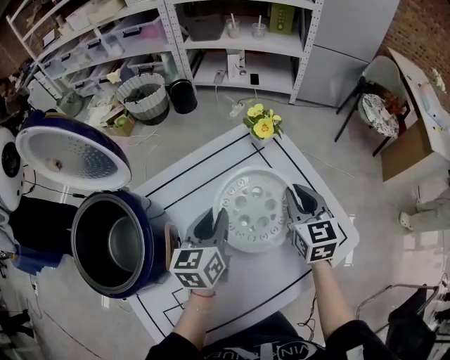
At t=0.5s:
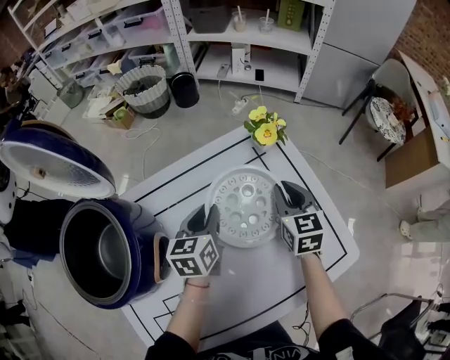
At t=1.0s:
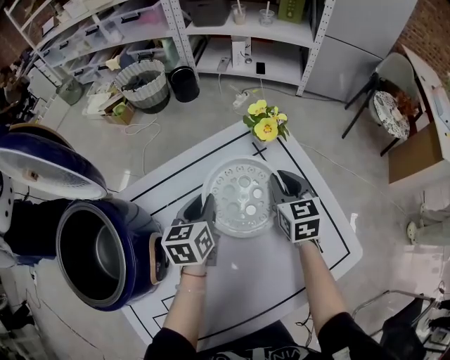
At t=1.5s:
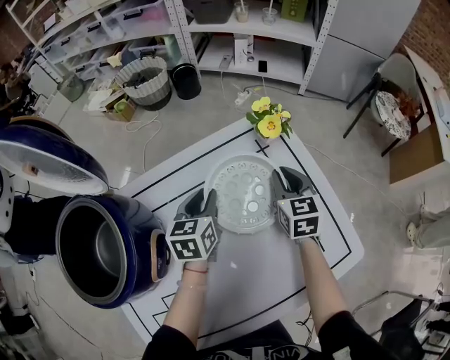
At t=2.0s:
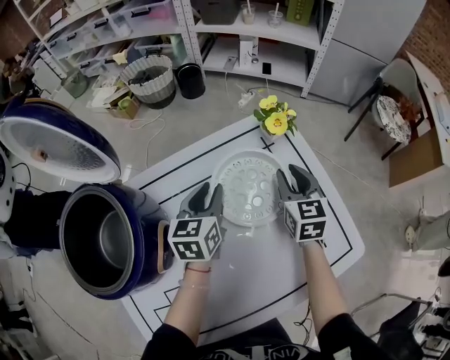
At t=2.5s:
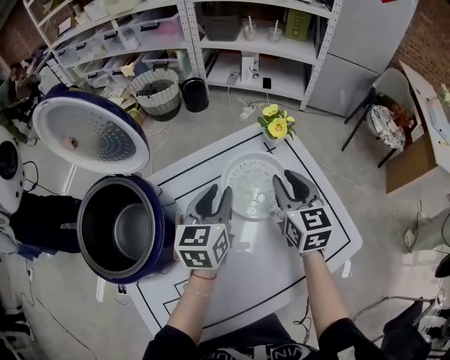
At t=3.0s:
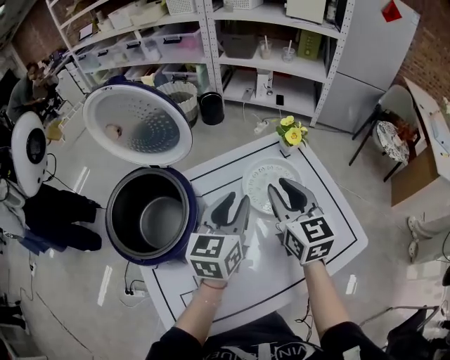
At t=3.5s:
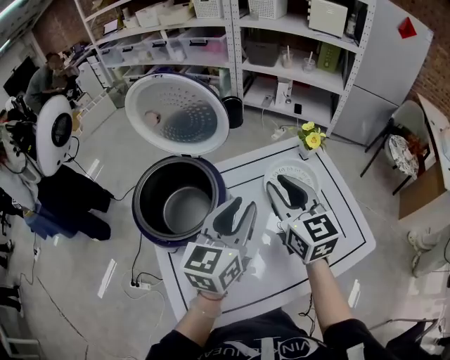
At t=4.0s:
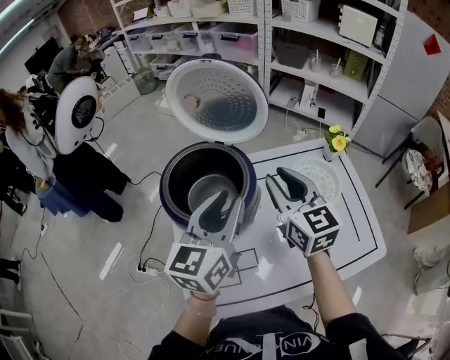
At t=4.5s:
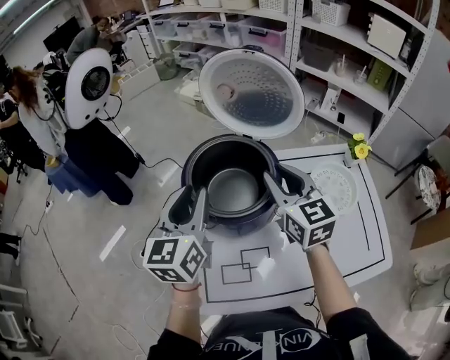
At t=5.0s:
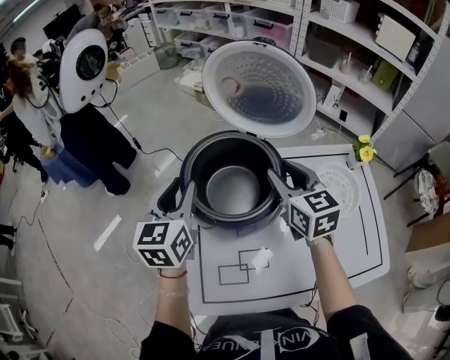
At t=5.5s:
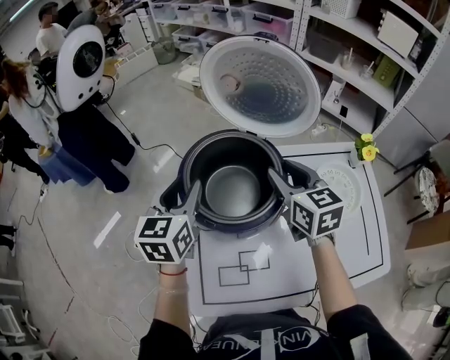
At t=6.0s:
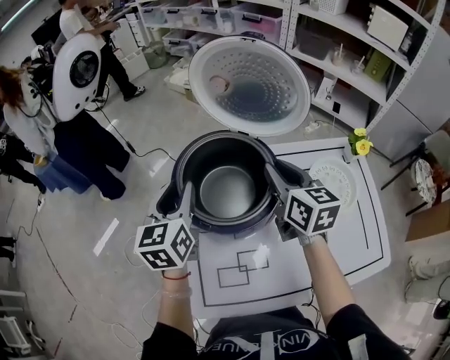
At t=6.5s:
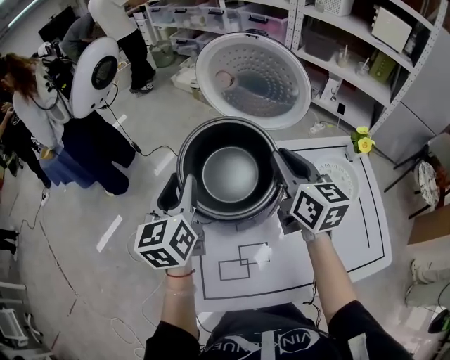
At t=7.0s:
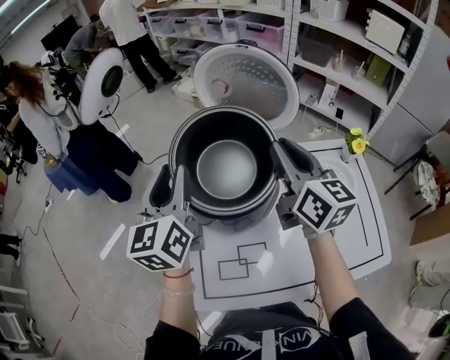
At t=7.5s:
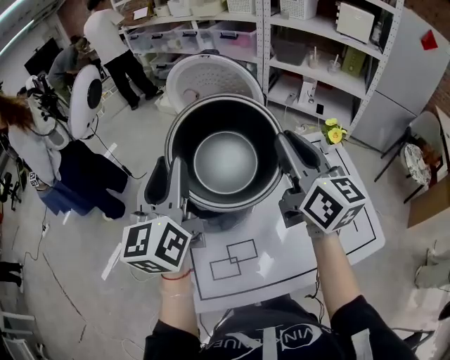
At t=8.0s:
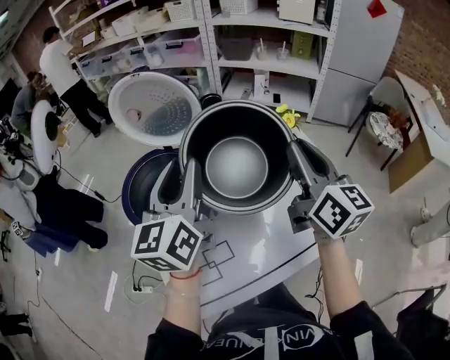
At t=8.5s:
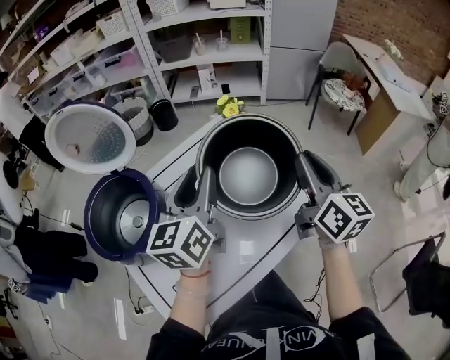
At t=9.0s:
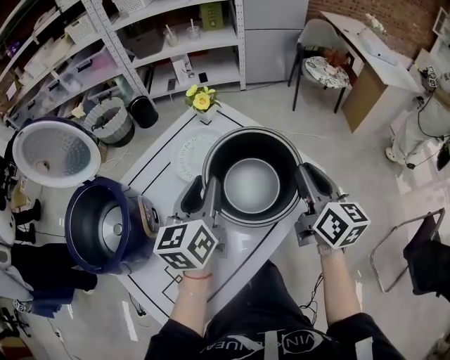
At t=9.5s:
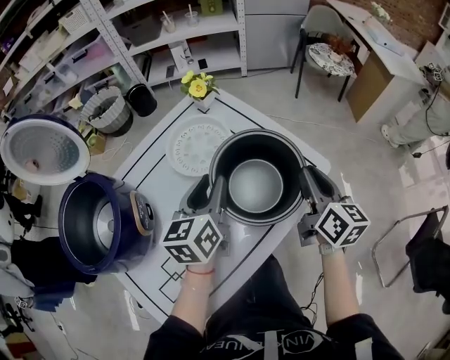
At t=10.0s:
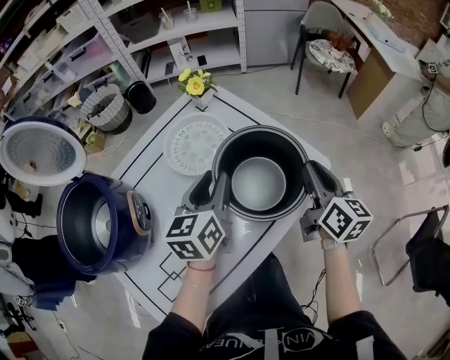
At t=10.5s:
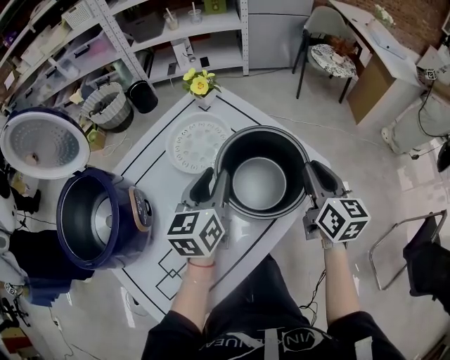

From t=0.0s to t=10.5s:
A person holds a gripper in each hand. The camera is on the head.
From t=0.0s to t=2.0s: The left gripper moves forward, roughly 5 cm, while the right gripper is displaced forward and downward by about 10 cm.
From t=2.0s to t=4.0s: The left gripper is displaced upward, backward and to the left by some 35 cm, and turns by roughly 20 degrees, while the right gripper travels to the left, upward and backward by approximately 40 cm, and changes its angle by about 30 degrees.
From t=4.0s to t=6.5s: The left gripper travels to the left and forward by approximately 20 cm, and turns by about 30 degrees. The right gripper goes approximately 10 cm forward and to the left.
From t=6.5s to t=8.5s: The right gripper reaches some 10 cm upward, then returns, and rotates some 40 degrees. Meanwhile the left gripper reaches roughly 15 cm upward, then returns, and changes its angle by roughly 40 degrees.
From t=8.5s to t=10.5s: The two grippers go roughly 15 cm downward and to the right.

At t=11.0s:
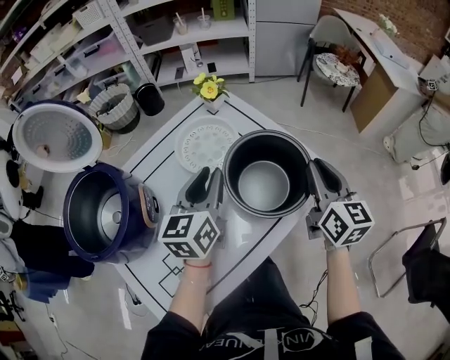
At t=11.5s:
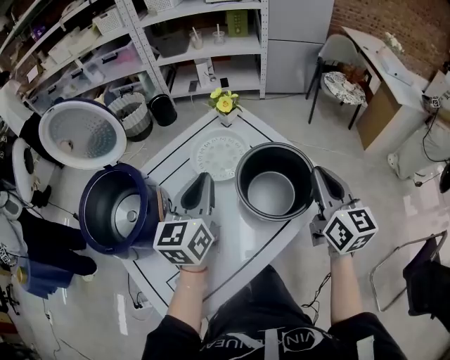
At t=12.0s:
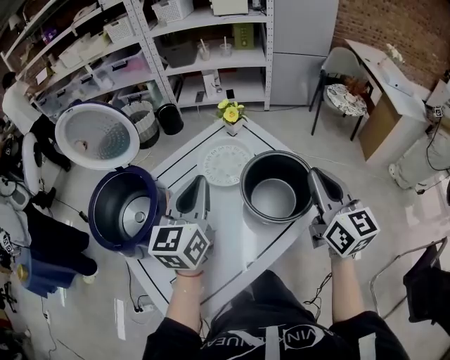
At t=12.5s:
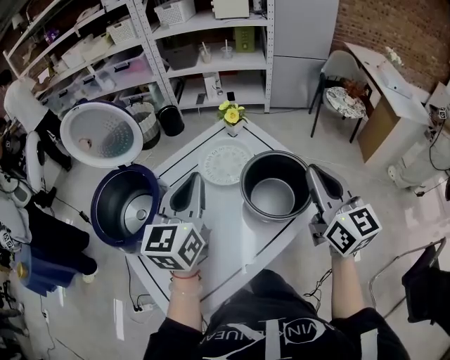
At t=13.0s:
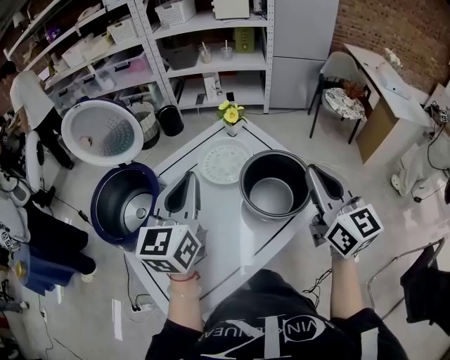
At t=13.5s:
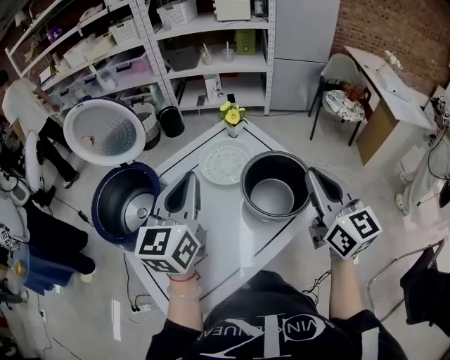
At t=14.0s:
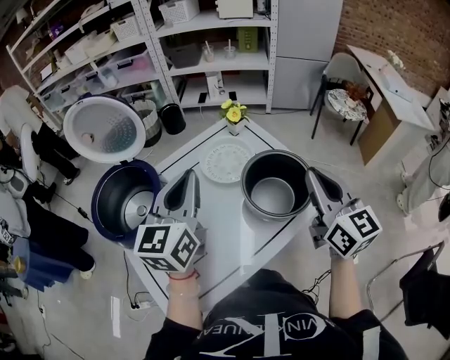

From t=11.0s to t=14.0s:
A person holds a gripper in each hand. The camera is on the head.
From t=11.0s to t=12.5s: The left gripper shifts some 15 cm upward, to the left and backward, and closes up; the right gripper heads upward and to the left, covering roughly 15 cm.
From t=12.5s to t=14.0s: There are only small adjustments of the grippers.

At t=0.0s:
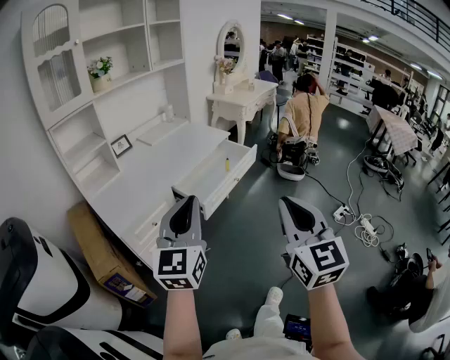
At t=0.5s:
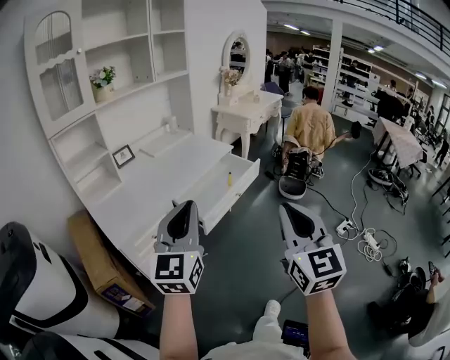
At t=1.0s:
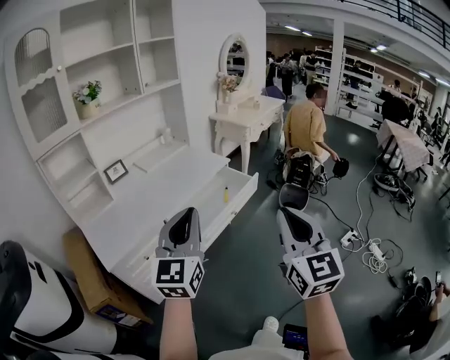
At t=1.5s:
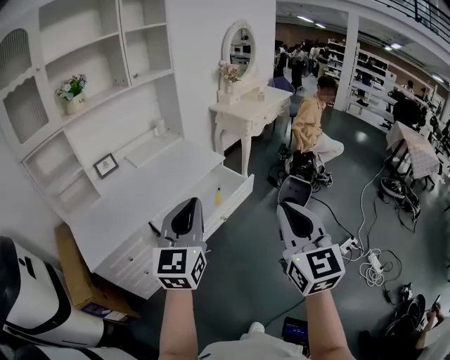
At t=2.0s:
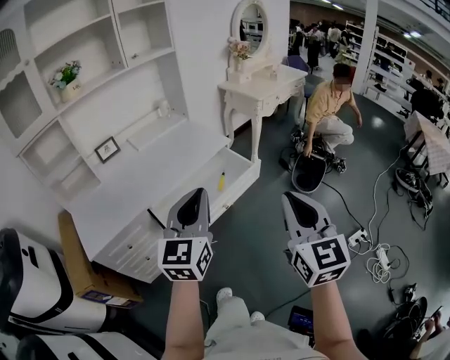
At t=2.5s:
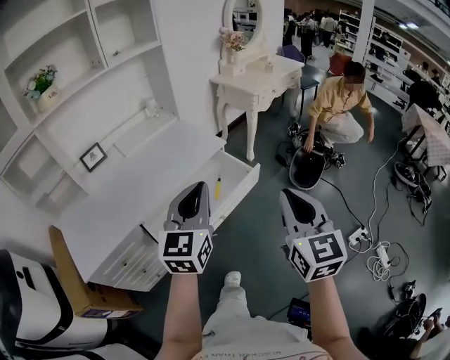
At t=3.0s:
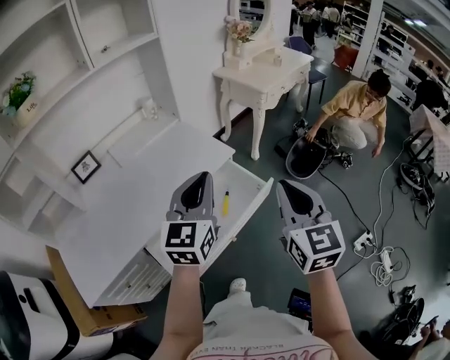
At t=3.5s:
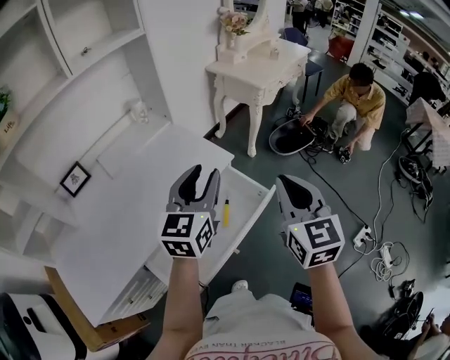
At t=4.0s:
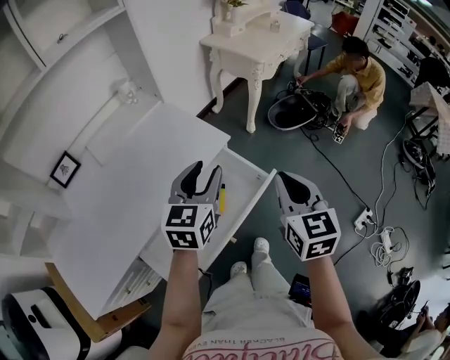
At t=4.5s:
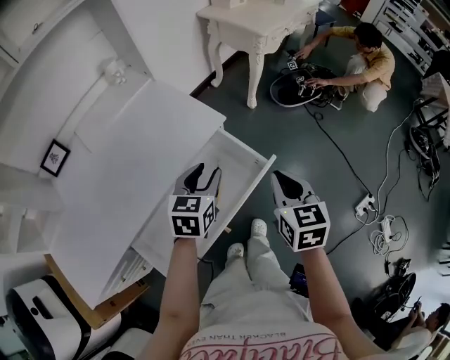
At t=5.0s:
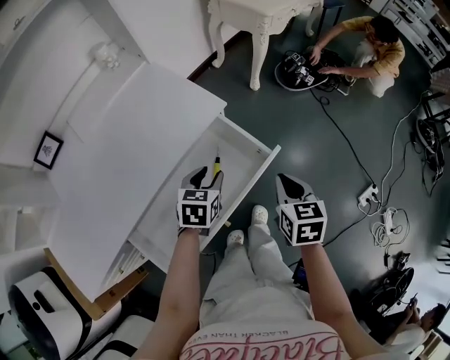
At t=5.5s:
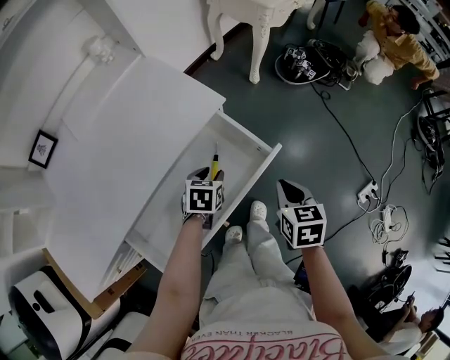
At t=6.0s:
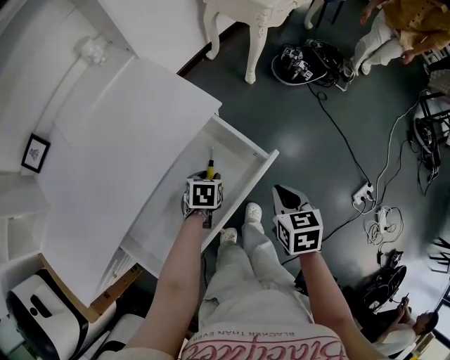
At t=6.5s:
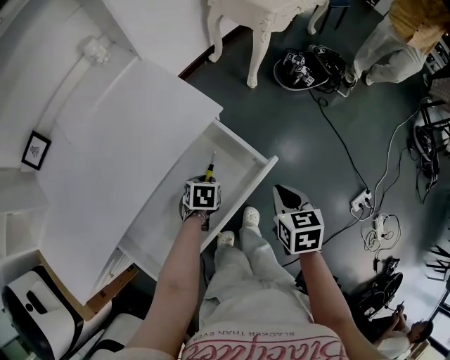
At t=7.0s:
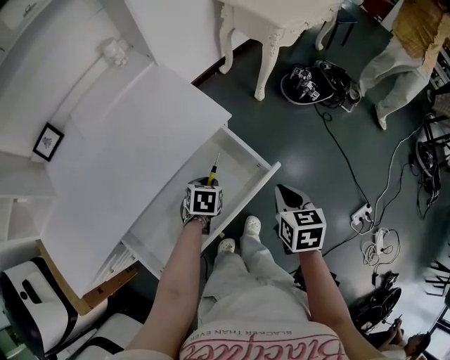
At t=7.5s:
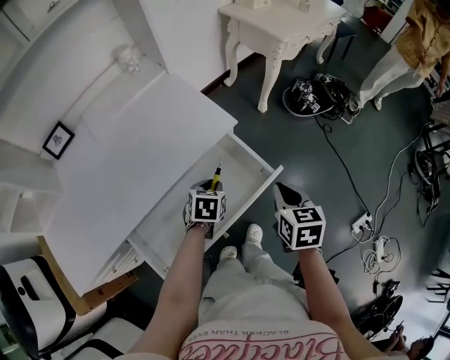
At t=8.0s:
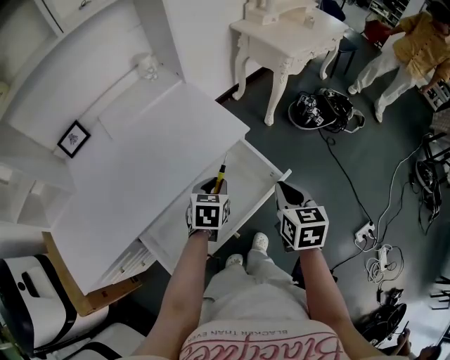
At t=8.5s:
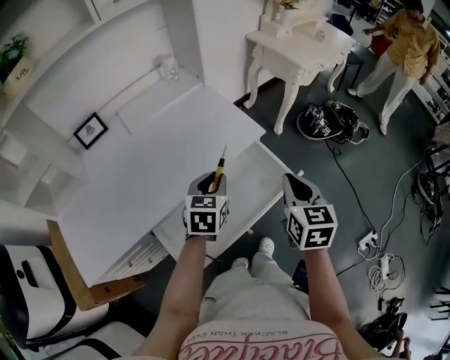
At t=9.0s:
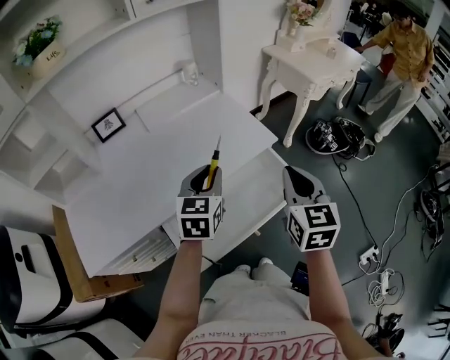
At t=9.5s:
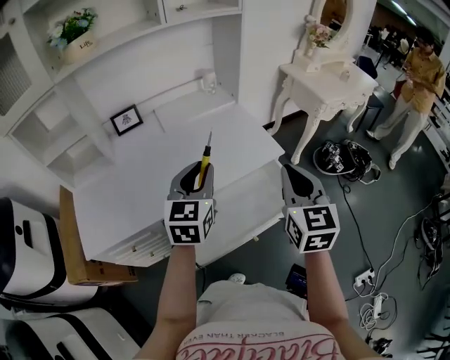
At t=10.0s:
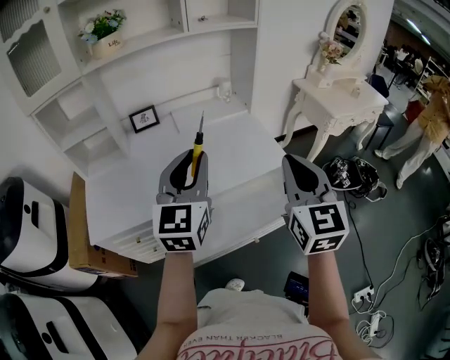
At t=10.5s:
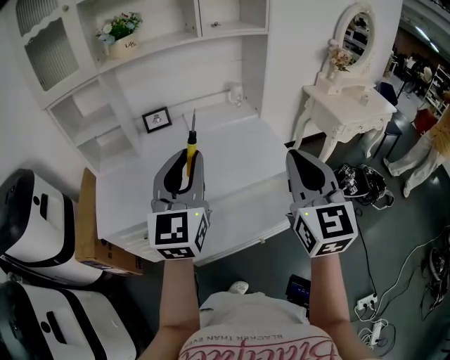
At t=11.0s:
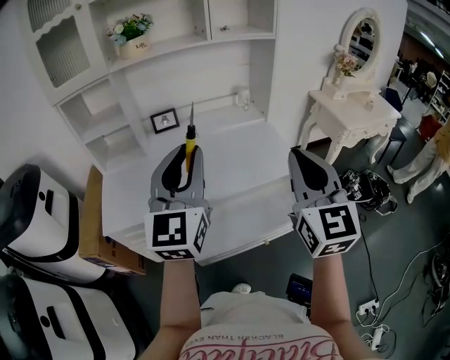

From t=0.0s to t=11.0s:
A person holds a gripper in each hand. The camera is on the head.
From t=0.0s to t=2.0s: The two grippers go some 35 cm forward and to the right.
From t=2.0s to t=3.5s: The two grippers go some 35 cm forward. The left gripper opens up.
From t=3.5s to t=5.5s: The two grippers go about 35 cm downward. The left gripper tips its fingers downward by some 50 degrees. Meanwhile the right gripper points its fingers about 40 degrees further downward.
From t=5.5s to t=7.5s: The right gripper heads upward, covering about 5 cm.
From t=7.5s to t=9.0s: The grippers both shift upward and to the left by about 25 cm. The right gripper turns by approximately 30 degrees, while the left gripper tips its fingers upward by some 30 degrees.
From t=9.0s to t=11.0s: The right gripper moves upward and to the left, roughly 20 cm, and turns by about 30 degrees. The left gripper is displaced upward, backward and to the left by about 30 cm, and tips its fingers upward by about 30 degrees.

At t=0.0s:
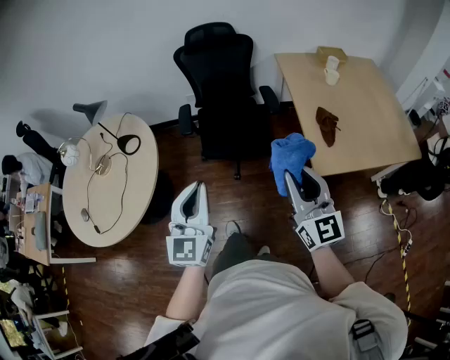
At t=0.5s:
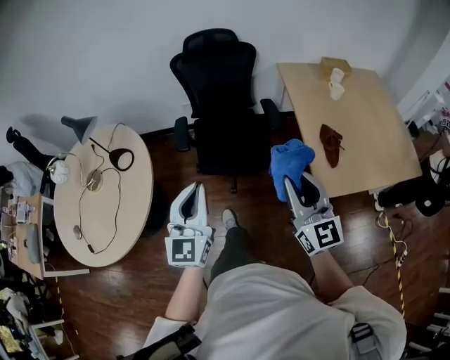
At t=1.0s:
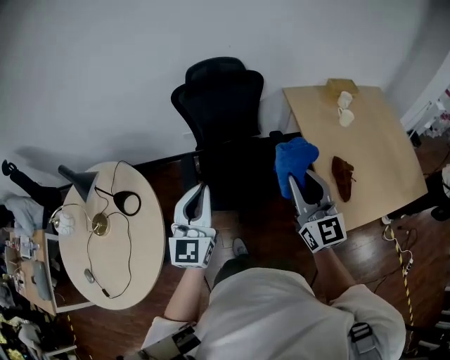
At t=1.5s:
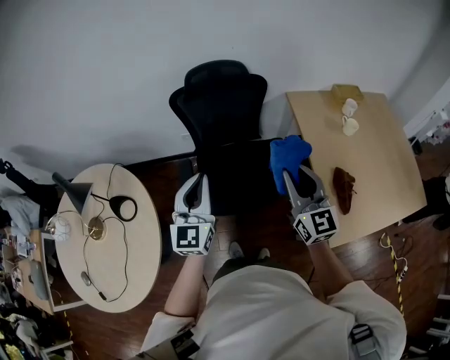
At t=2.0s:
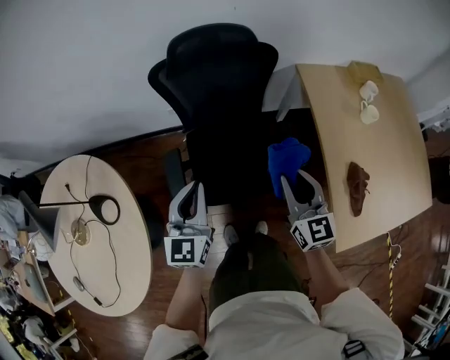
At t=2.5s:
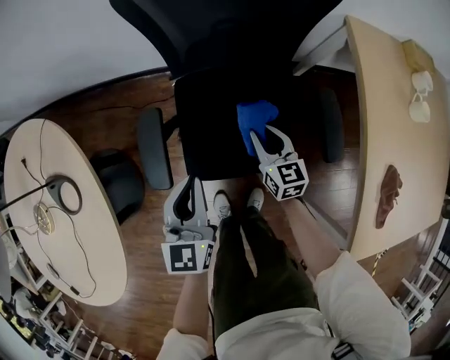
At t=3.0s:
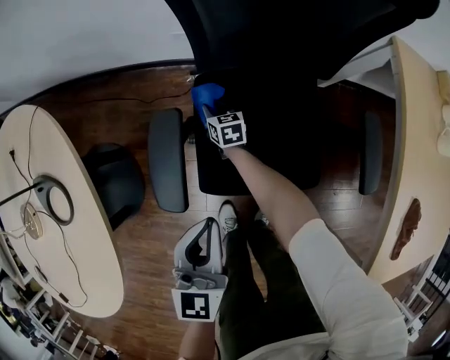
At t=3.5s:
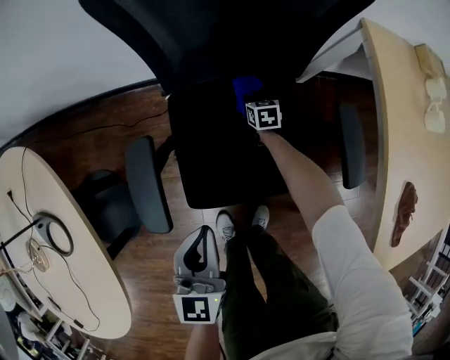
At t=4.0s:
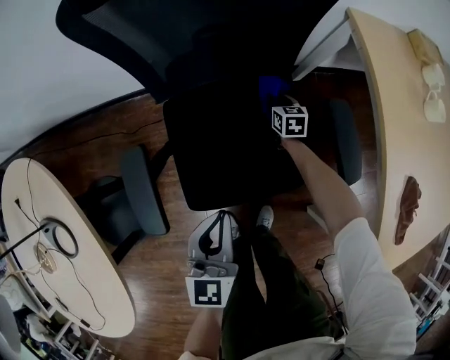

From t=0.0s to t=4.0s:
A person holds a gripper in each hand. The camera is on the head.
From t=0.0s to t=2.0s: Both grippers are carried forward, about 70 cm. The right gripper rotates some 30 degrees.
From t=2.0s to t=4.0s: The right gripper is displaced downward and forward by some 80 cm, and angles its fingers downward, by roughly 40 degrees, while the left gripper moves downward, roughly 35 cm.
